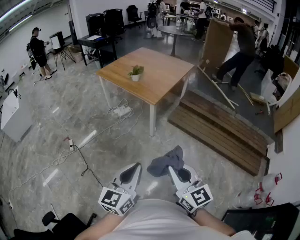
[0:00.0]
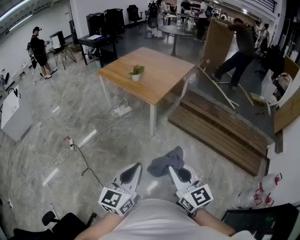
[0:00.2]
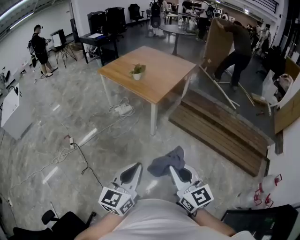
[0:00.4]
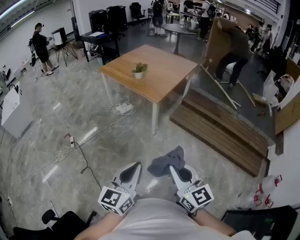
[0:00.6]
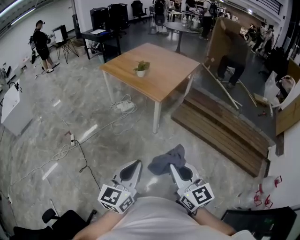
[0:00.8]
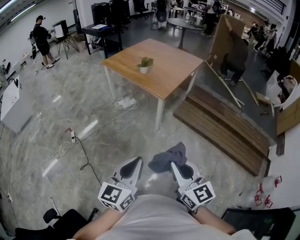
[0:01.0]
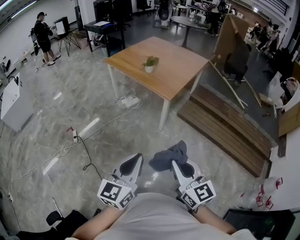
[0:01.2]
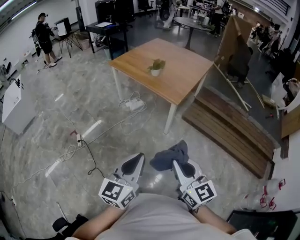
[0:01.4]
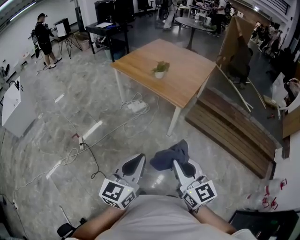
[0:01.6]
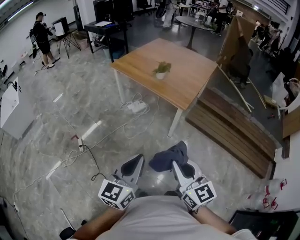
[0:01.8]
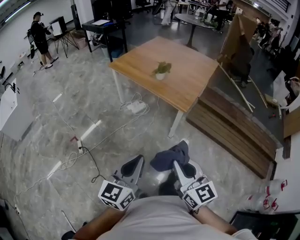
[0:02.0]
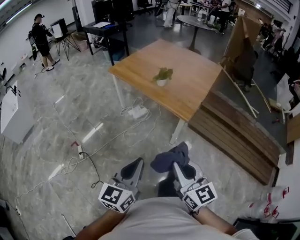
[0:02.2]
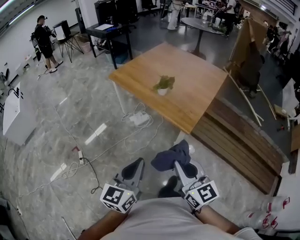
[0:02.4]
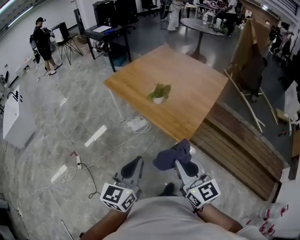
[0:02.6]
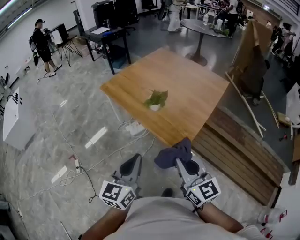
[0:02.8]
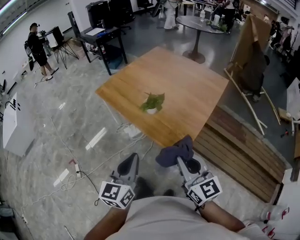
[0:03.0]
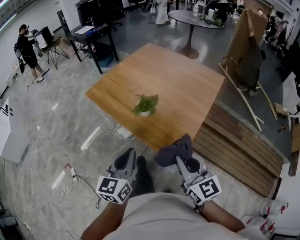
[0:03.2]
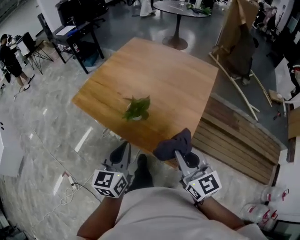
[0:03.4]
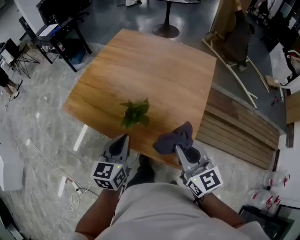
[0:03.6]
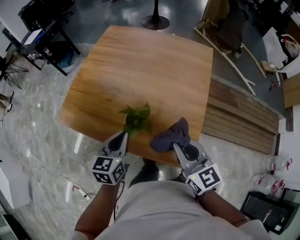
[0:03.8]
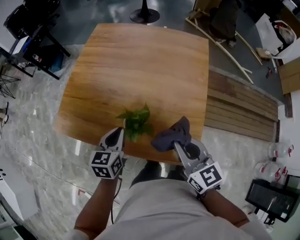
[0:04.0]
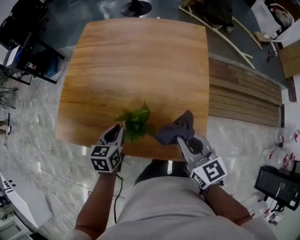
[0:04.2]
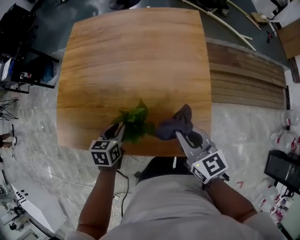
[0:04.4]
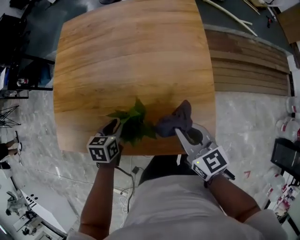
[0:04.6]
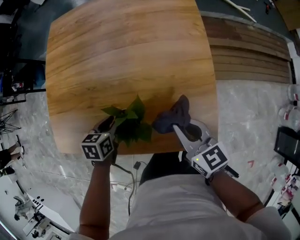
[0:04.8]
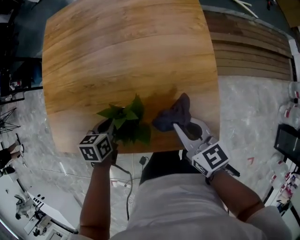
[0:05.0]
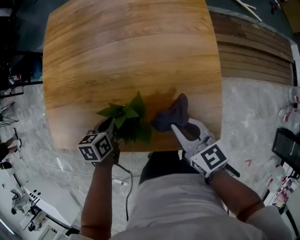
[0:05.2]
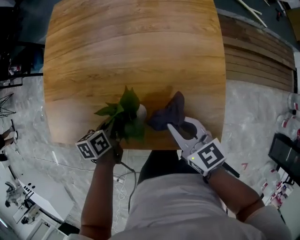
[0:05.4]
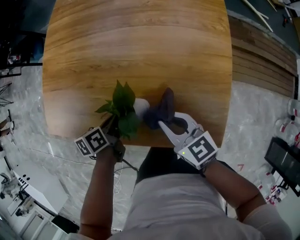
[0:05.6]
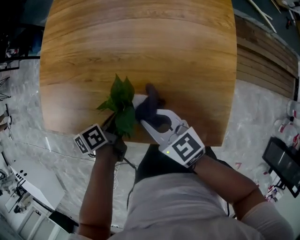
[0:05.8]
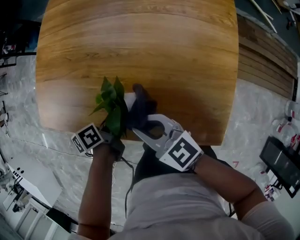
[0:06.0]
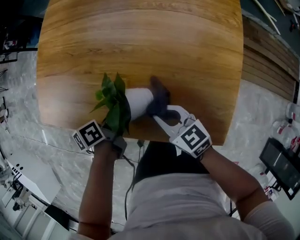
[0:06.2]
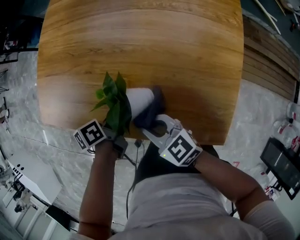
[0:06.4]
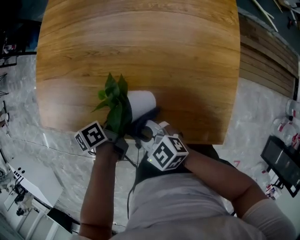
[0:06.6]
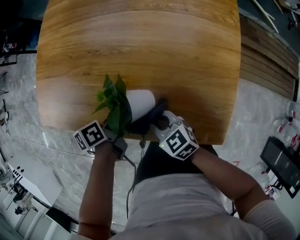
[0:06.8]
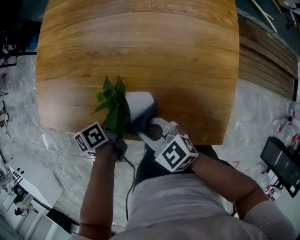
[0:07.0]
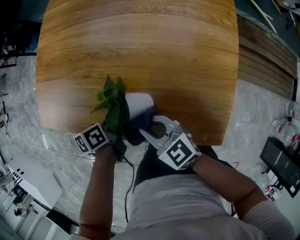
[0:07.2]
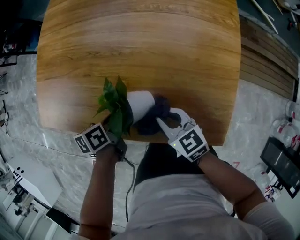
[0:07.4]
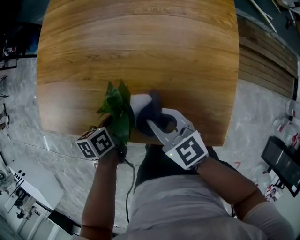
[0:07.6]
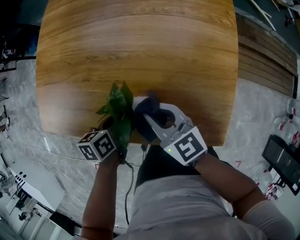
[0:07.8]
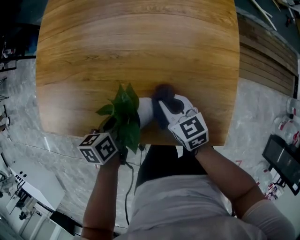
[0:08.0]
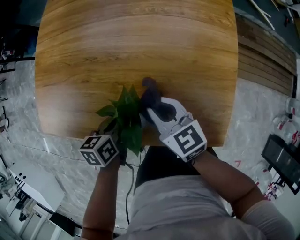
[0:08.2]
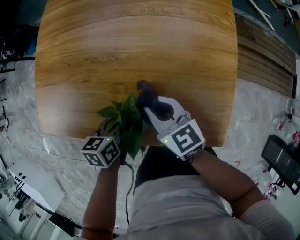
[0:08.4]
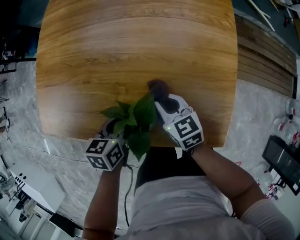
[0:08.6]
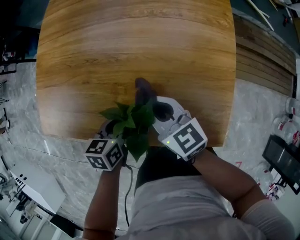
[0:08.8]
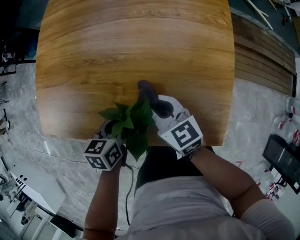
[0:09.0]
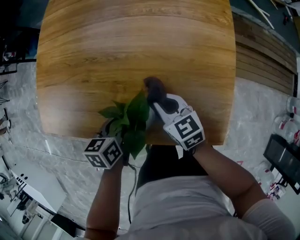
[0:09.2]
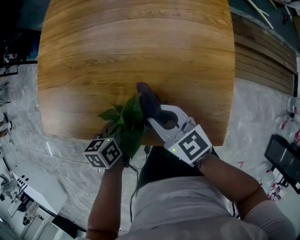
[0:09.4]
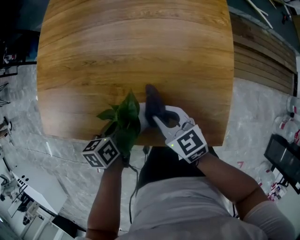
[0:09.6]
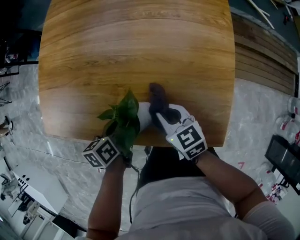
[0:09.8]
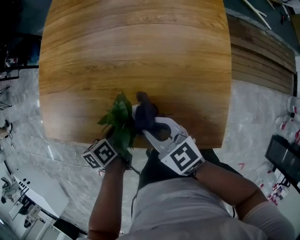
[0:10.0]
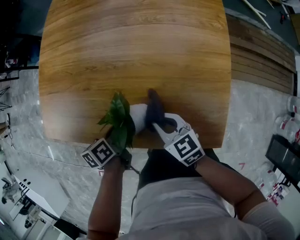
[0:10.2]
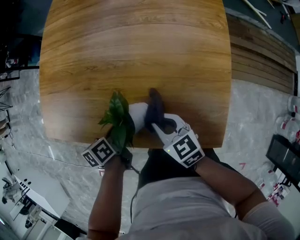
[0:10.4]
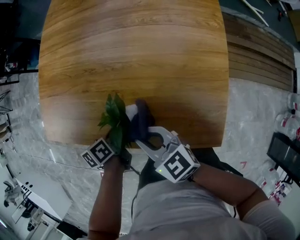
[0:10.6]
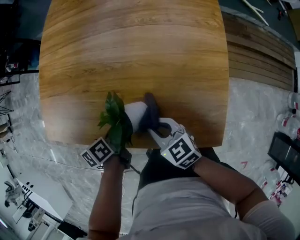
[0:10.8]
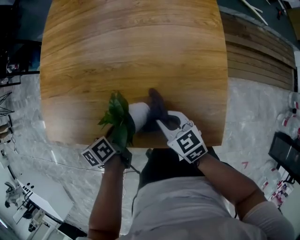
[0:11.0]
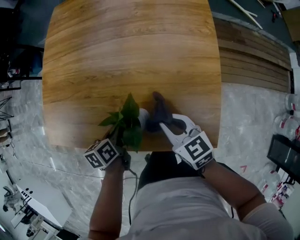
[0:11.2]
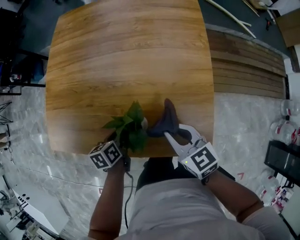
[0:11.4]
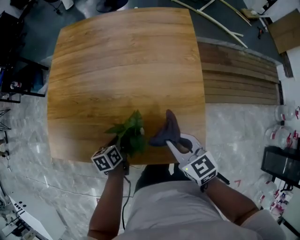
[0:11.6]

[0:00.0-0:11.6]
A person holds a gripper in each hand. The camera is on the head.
0:00.0 to 0:01.4: The grippers both shift to the left and forward by roughly 20 cm.
0:01.4 to 0:02.8: The pair of grippers is taken forward, some 50 cm.
0:02.8 to 0:04.4: Both grippers are carried some 50 cm. The right gripper rotates about 40 degrees, while the left gripper tips its fingers downward by some 40 degrees, and opens up.
0:04.4 to 0:05.8: The left gripper moves downward, about 10 cm, and rolls counterclockwise, seen from behind, by approximately 40 degrees; the right gripper moves downward and to the left, approximately 20 cm, and swivels roughly 20 degrees.
0:05.8 to 0:07.2: The right gripper reaches approximately 10 cm downward, then returns.
0:07.2 to 0:08.8: The left gripper turns by approximately 30 degrees. The right gripper swings up and down, about 10 cm each way, with 5 reversals.
0:08.8 to 0:10.2: The left gripper changes its angle by some 30 degrees, while the right gripper goes up and down, some 10 cm each way, reversing 4 times.
0:10.2 to 0:11.6: The left gripper ends up roughly 5 cm from where it was, while the right gripper travels upward and to the right by approximately 20 cm.

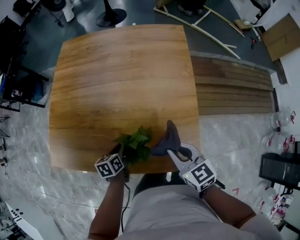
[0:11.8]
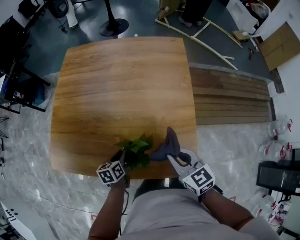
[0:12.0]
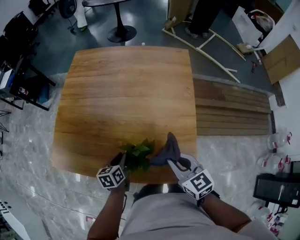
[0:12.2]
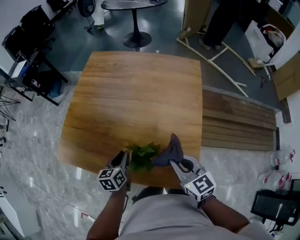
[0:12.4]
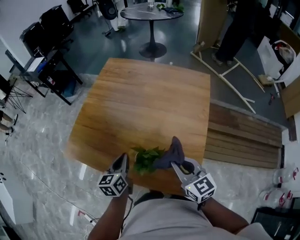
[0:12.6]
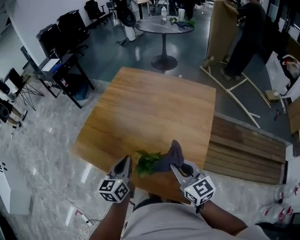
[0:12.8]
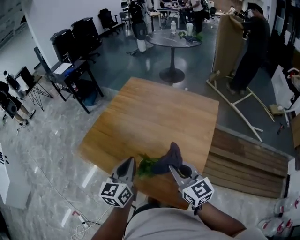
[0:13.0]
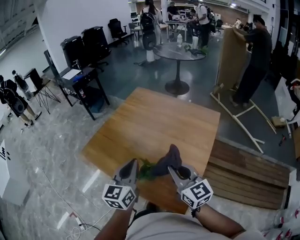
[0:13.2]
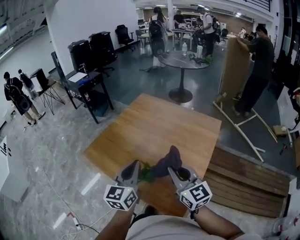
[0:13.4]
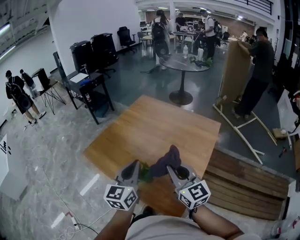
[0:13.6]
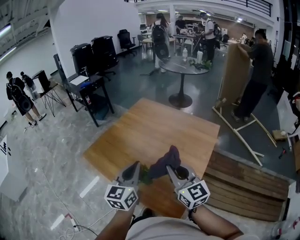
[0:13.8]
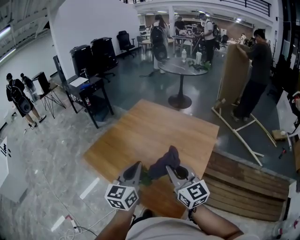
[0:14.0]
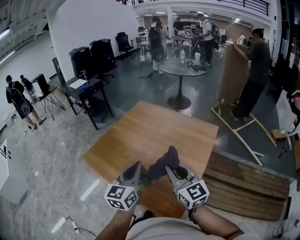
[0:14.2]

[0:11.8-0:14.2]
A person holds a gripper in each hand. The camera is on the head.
0:11.8 to 0:13.0: The left gripper heads upward, covering roughly 35 cm, and angles its fingers upward, by some 40 degrees, while the right gripper is displaced upward by about 20 cm, and changes its angle by roughly 30 degrees.
0:13.0 to 0:14.2: The left gripper is displaced upward, backward and to the right by about 10 cm; the right gripper goes about 10 cm upward.

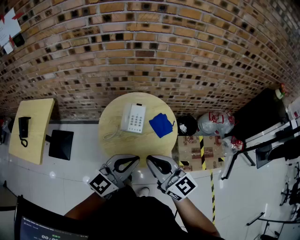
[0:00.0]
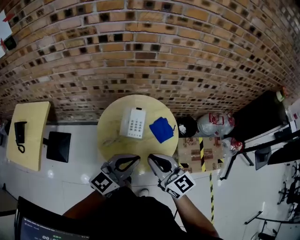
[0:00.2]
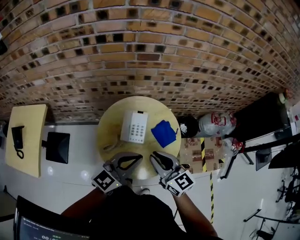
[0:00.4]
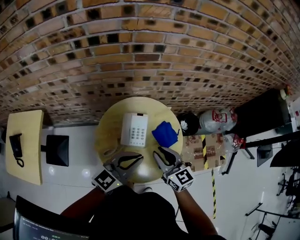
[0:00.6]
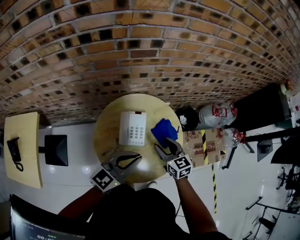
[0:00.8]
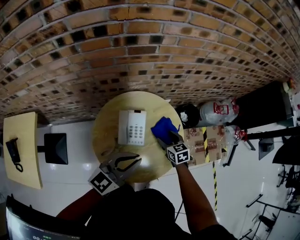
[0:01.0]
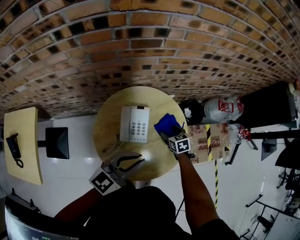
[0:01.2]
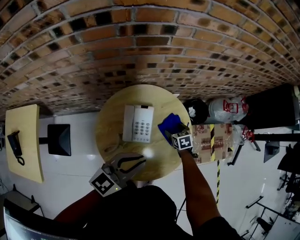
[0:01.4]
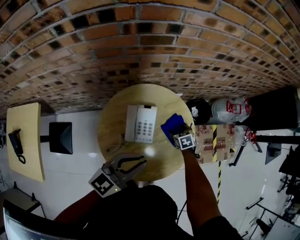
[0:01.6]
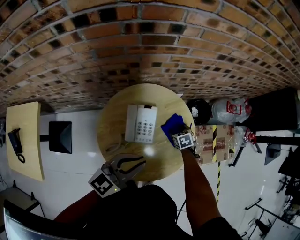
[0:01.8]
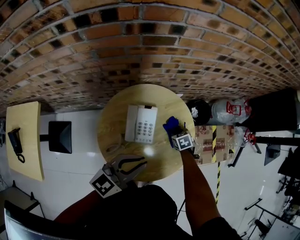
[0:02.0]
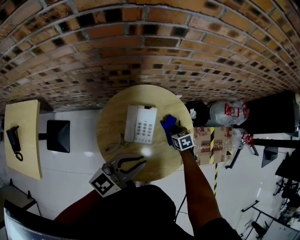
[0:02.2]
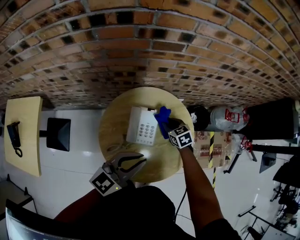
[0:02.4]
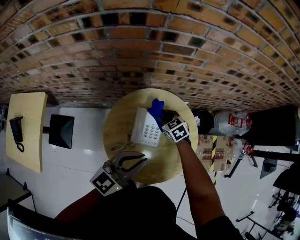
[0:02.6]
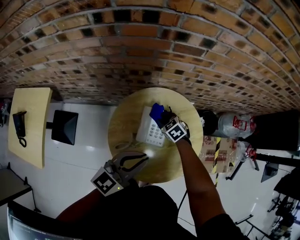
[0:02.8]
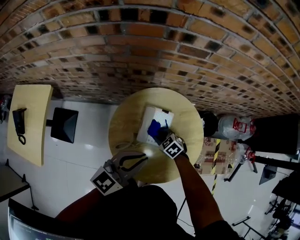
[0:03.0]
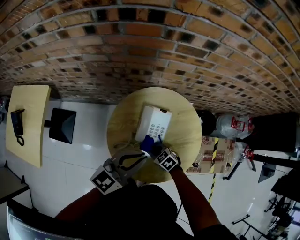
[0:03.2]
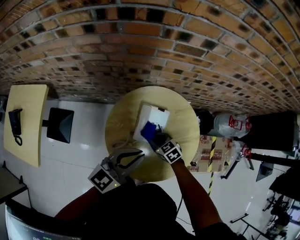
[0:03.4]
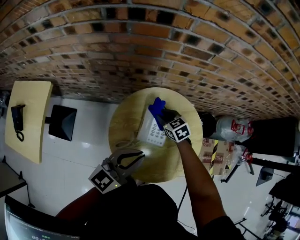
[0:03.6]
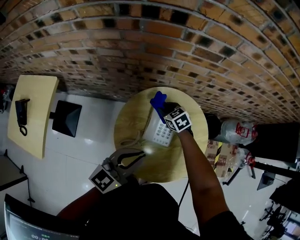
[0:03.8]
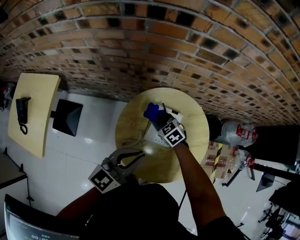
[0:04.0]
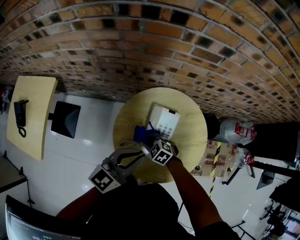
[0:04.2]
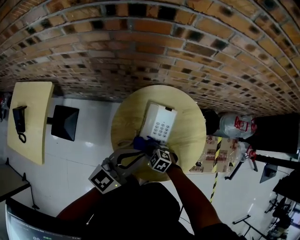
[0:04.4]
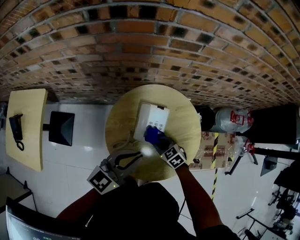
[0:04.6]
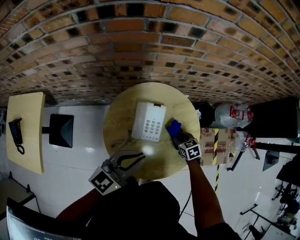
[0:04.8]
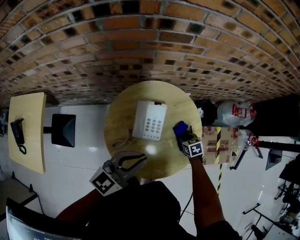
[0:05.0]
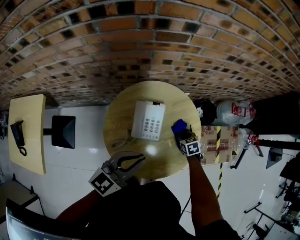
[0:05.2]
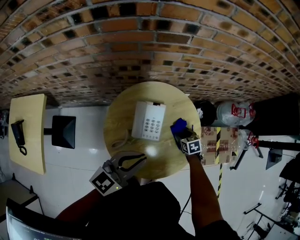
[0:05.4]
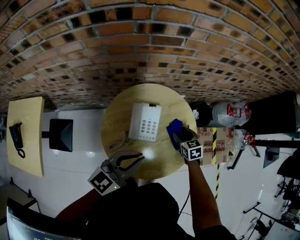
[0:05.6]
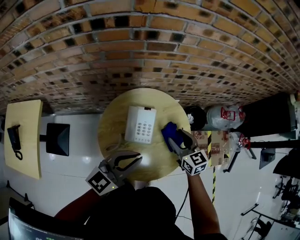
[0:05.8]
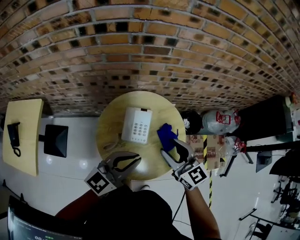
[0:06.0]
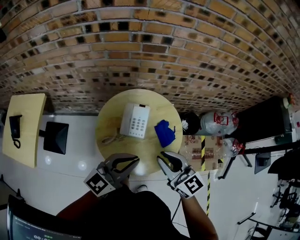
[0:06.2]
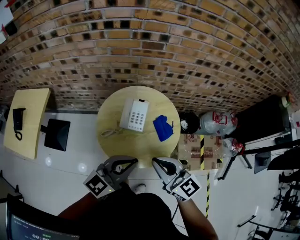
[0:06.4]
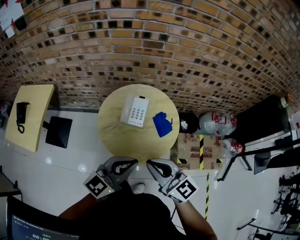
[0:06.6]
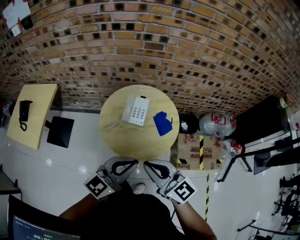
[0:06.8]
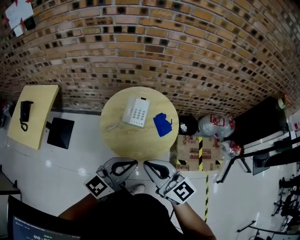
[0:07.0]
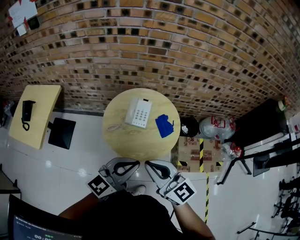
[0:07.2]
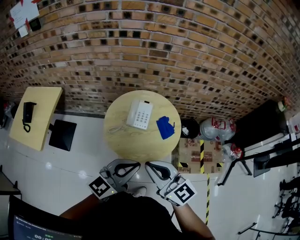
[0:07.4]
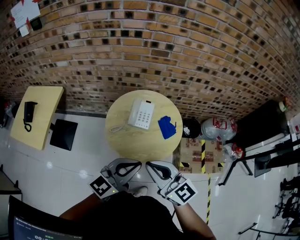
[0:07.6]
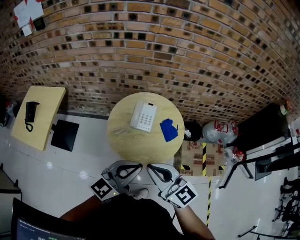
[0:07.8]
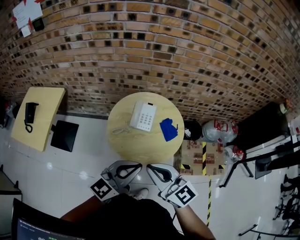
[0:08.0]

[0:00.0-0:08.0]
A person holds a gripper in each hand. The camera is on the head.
0:00.0 to 0:01.6: The left gripper goes some 25 cm forward and downward; the right gripper moves downward and forward, about 60 cm, points its fingers approximately 60 degrees further downward, and opens up.
0:01.6 to 0:03.2: The left gripper shifts by about 5 cm; the right gripper goes upward and returns, roughly 10 cm each way, changes its angle by approximately 40 degrees, and closes.
0:03.2 to 0:04.8: The right gripper goes upward and returns, some 10 cm each way, and turns by about 30 degrees.
0:04.8 to 0:06.4: The right gripper is displaced upward and backward by about 40 cm, points its fingers approximately 50 degrees further upward, and opens, then closes again, while the left gripper moves backward, upward and to the right, some 20 cm.
0:06.4 to 0:08.0: The right gripper shifts approximately 15 cm backward, upward and to the left, while the left gripper shifts approximately 10 cm backward.

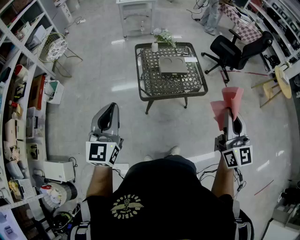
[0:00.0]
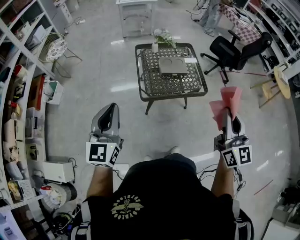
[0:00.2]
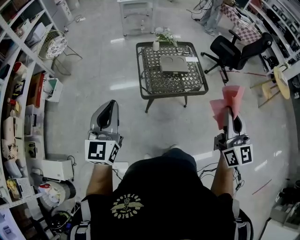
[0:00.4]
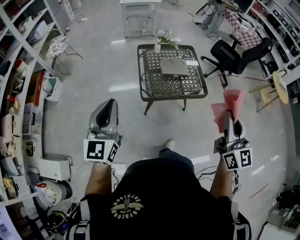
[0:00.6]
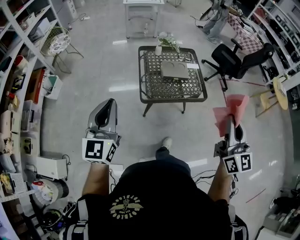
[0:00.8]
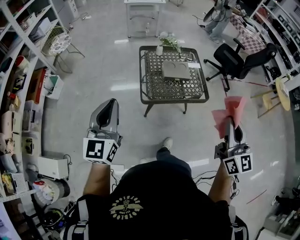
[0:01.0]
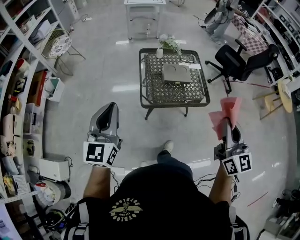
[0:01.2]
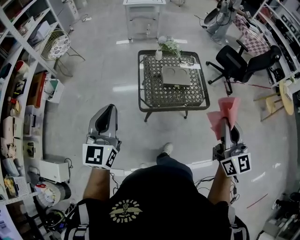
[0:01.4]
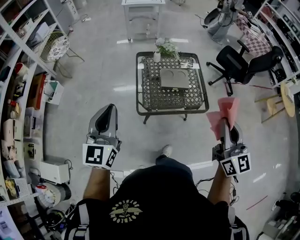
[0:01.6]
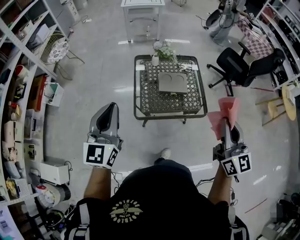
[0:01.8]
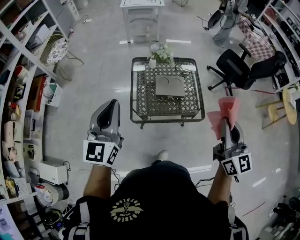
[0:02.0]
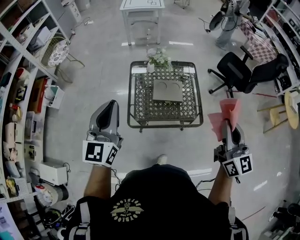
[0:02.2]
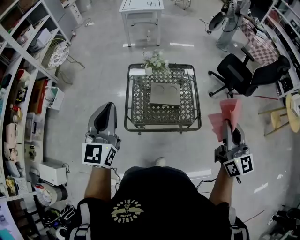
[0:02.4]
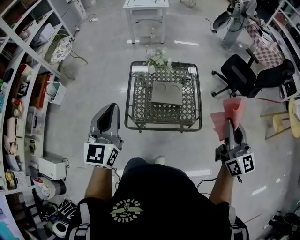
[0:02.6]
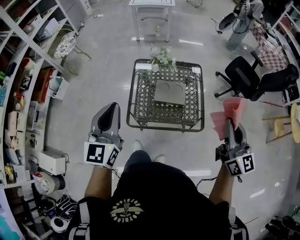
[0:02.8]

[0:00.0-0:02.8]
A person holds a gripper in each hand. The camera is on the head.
0:00.0 to 0:01.4: The two grippers go roughly 10 cm forward.
0:01.4 to 0:02.8: The right gripper moves forward and to the right, roughly 30 cm. Meanwhile the left gripper shifts approximately 25 cm to the right and forward.
